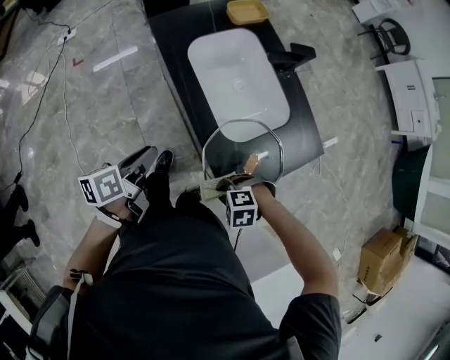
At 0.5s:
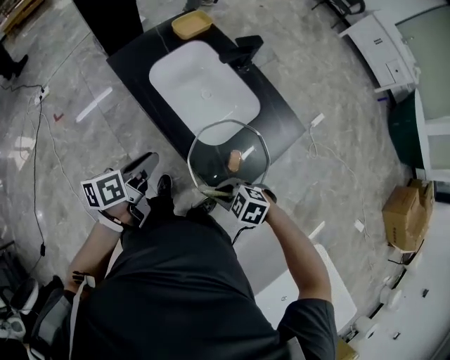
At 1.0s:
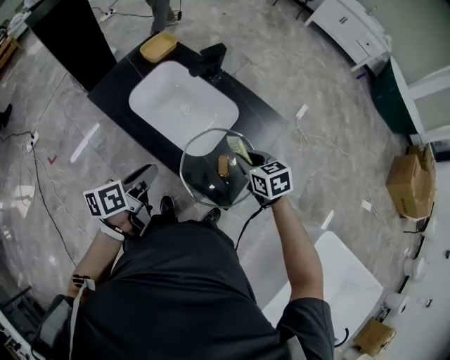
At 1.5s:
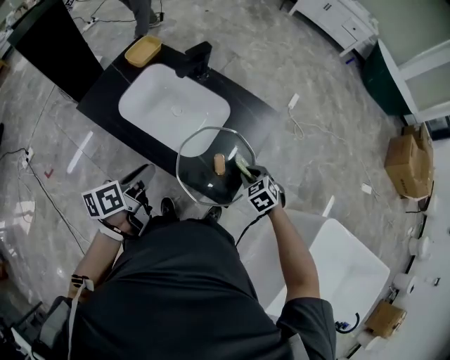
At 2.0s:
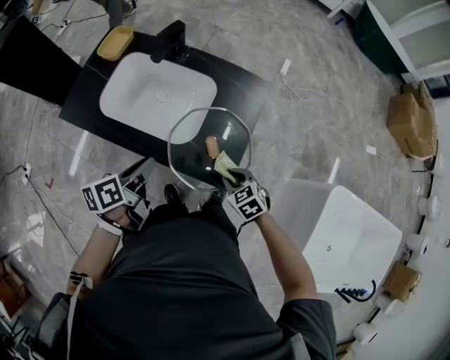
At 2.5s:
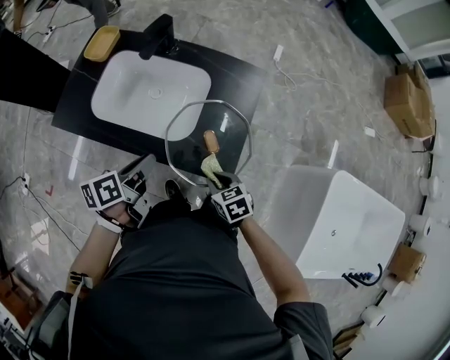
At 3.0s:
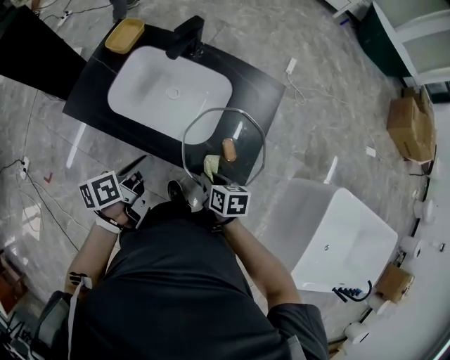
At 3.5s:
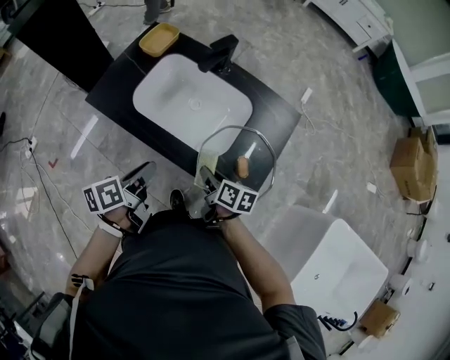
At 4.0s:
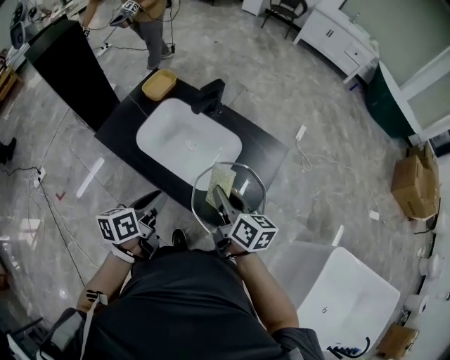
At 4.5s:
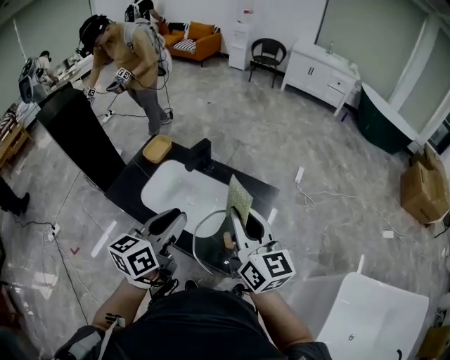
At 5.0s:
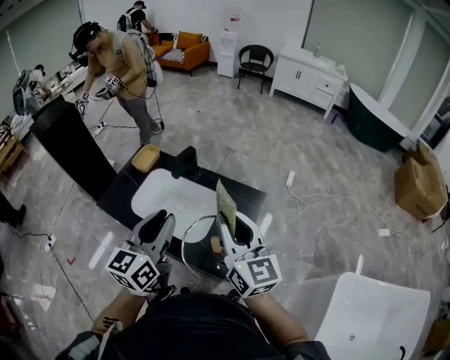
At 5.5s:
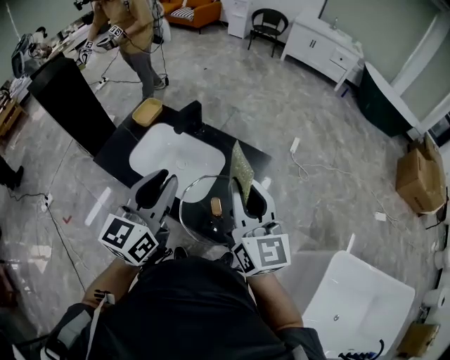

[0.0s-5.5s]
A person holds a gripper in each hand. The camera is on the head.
0.0s to 2.0s: The right gripper goes upward and returns, some 10 cm each way, and twists about 80 degrees clockwise, seen from behind; the left gripper moves about 15 cm, and turns by roughly 40 degrees.
2.0s to 3.5s: The right gripper heads to the left and forward, covering approximately 20 cm, and twists roughly 50 degrees clockwise, seen from behind. The left gripper is displaced to the left by approximately 10 cm.
3.5s to 5.5s: The two grippers go roughly 35 cm upward and to the right. The right gripper angles its fingers upward, by some 40 degrees. The left gripper rolls clockwise, seen from behind, by about 50 degrees.

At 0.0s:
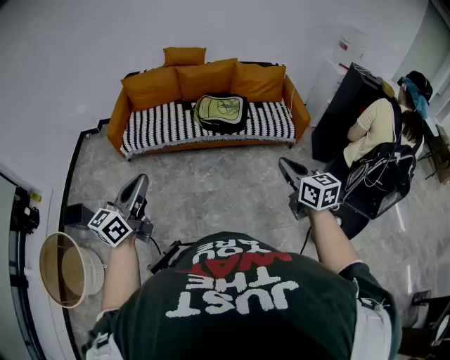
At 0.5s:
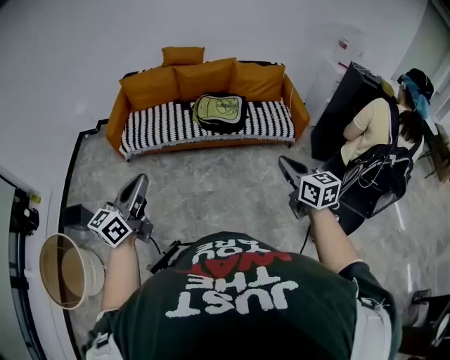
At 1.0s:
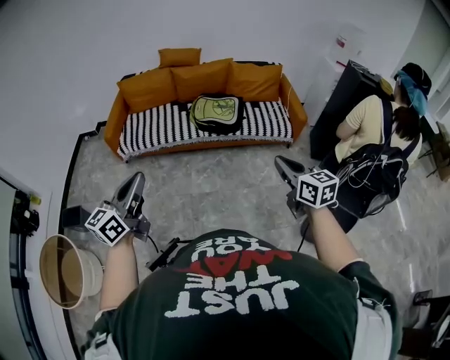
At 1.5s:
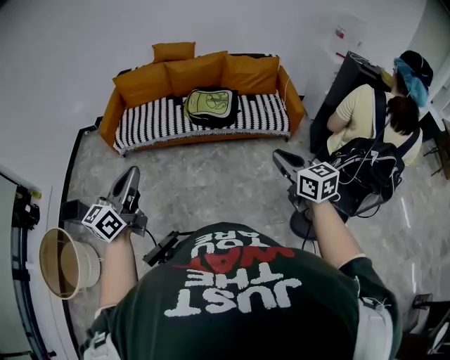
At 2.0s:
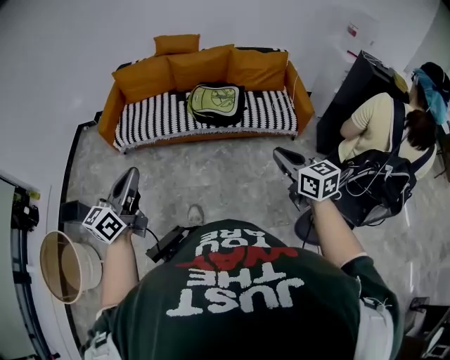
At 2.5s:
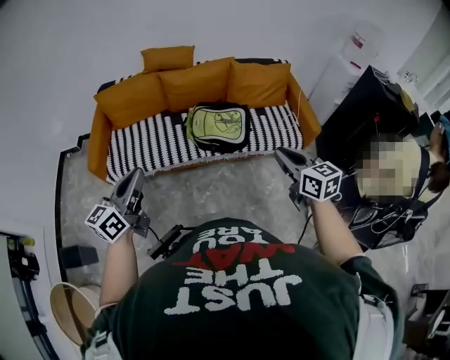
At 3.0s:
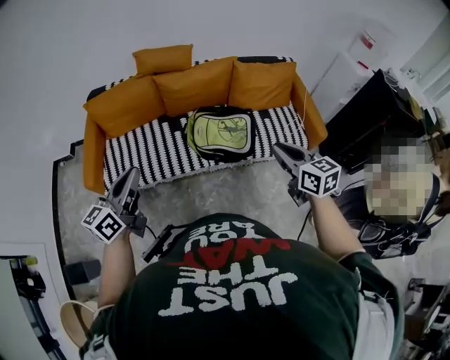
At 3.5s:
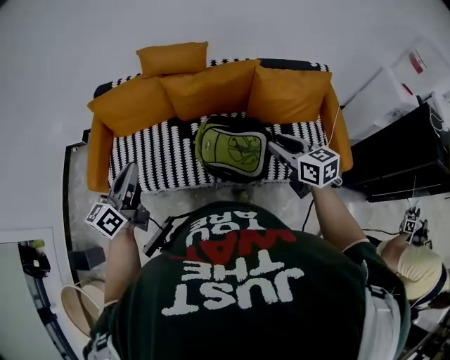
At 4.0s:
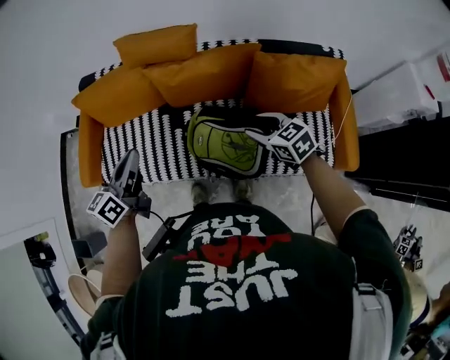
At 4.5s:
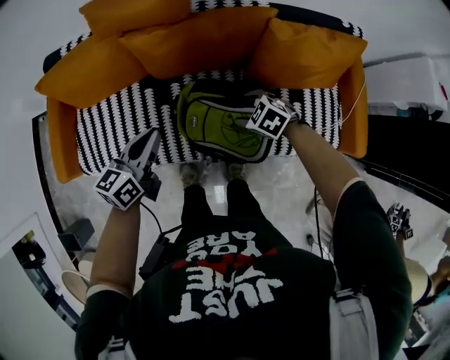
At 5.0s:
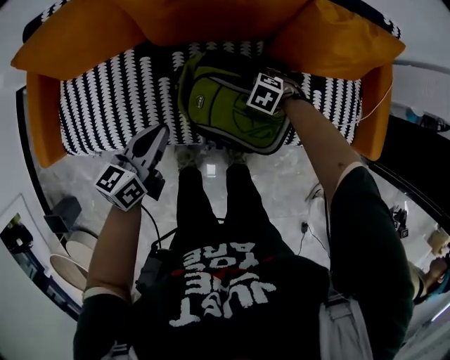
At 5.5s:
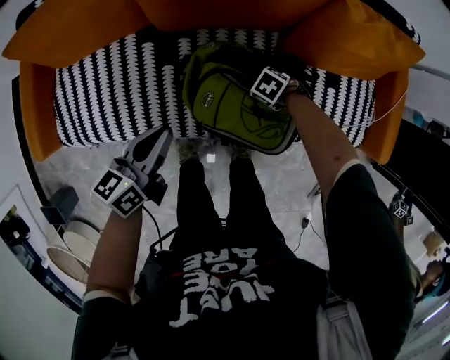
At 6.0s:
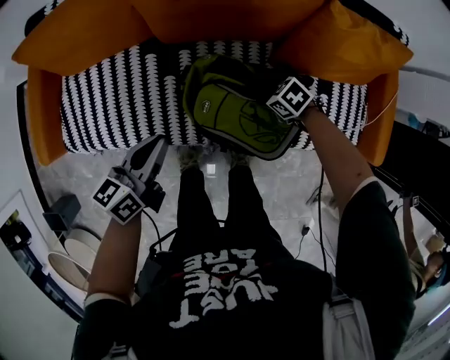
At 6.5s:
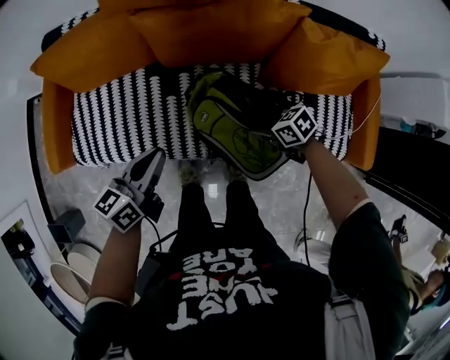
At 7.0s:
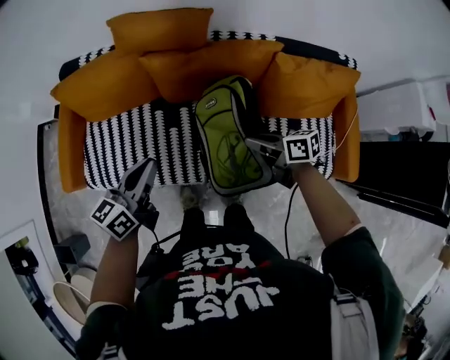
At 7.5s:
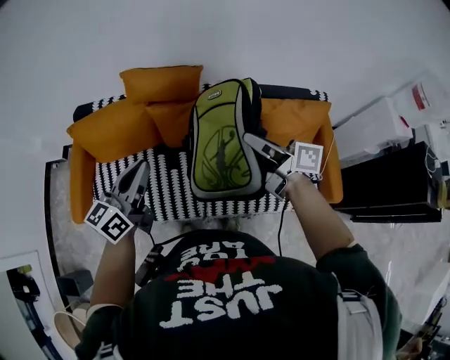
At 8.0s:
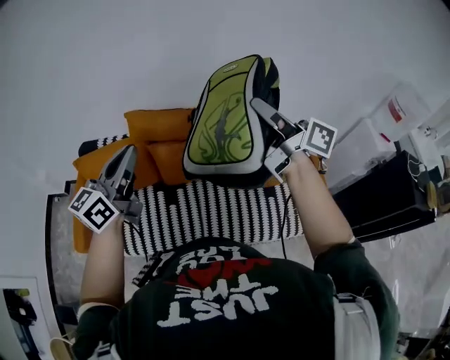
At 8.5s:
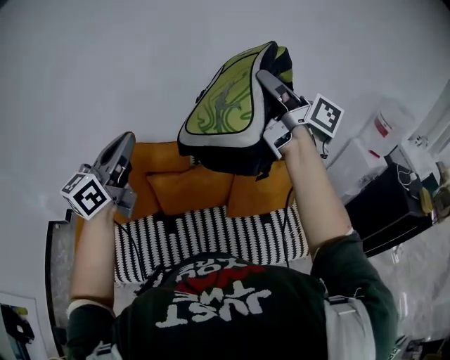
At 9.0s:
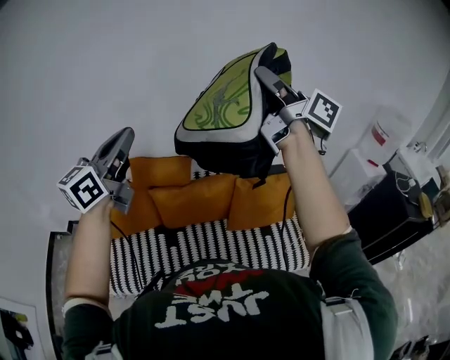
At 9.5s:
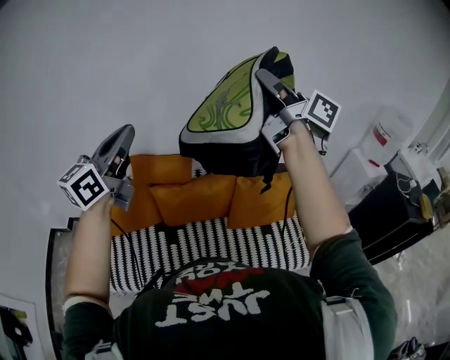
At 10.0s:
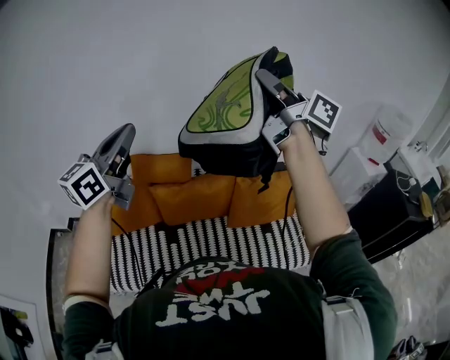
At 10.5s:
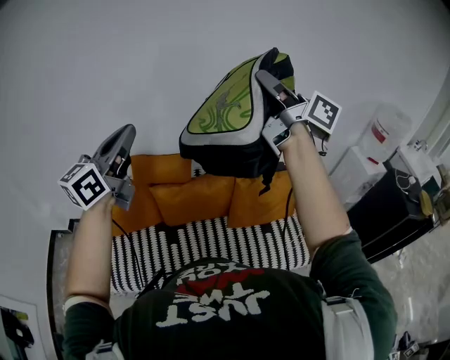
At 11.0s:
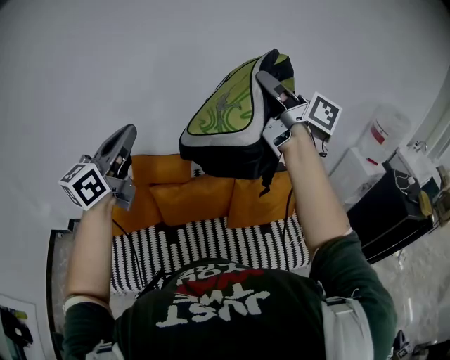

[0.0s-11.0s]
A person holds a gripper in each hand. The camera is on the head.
0.0s to 2.0s: Both grippers travel together forward and to the right, about 10 cm.
2.0s to 3.5s: The two grippers travel together, forward, about 50 cm.
3.5s to 5.5s: The left gripper heads downward, covering roughly 30 cm, and rotates roughly 30 degrees. Meanwhile the right gripper shifts about 50 cm downward, points its fingers approximately 50 degrees further downward, and opens, then closes again.
5.5s to 7.5s: The right gripper shifts approximately 60 cm upward, angles its fingers upward, by about 70 degrees, and closes its fingers; the left gripper heads upward, covering approximately 30 cm, and swivels approximately 30 degrees.
7.5s to 9.0s: The right gripper goes roughly 25 cm upward, and turns by some 30 degrees; the left gripper heads upward, covering about 10 cm, and swivels about 20 degrees.
9.0s to 11.0s: The grippers stay close to where they were, moving slightly.

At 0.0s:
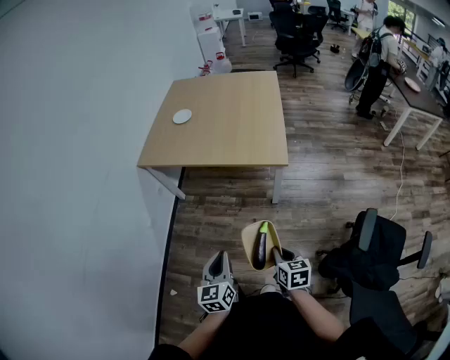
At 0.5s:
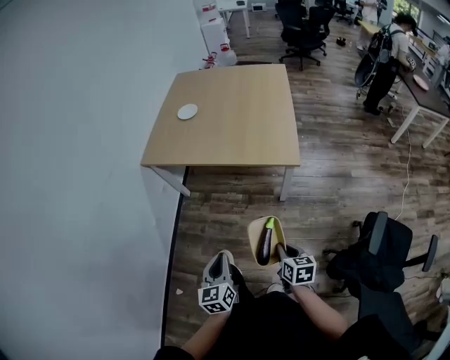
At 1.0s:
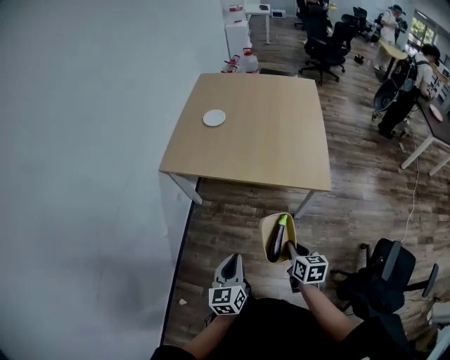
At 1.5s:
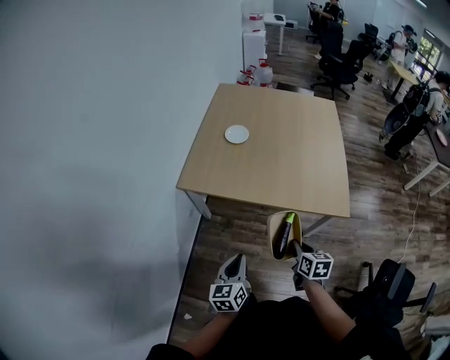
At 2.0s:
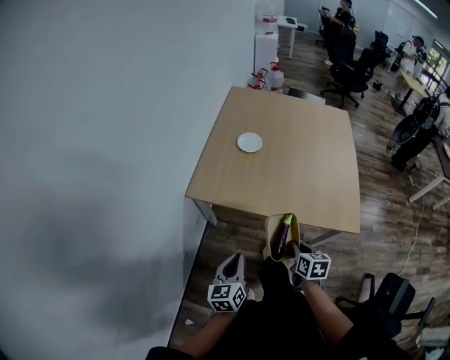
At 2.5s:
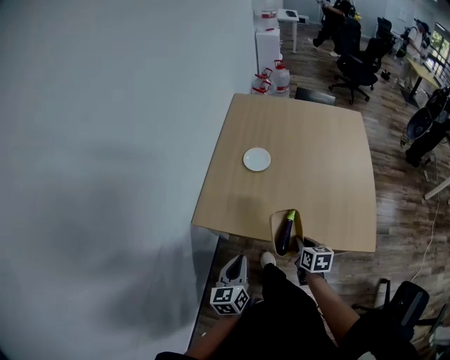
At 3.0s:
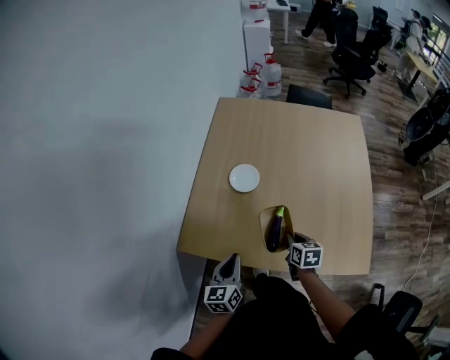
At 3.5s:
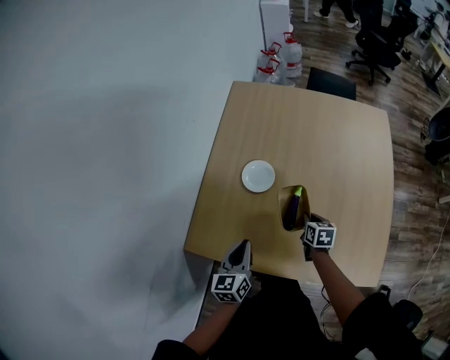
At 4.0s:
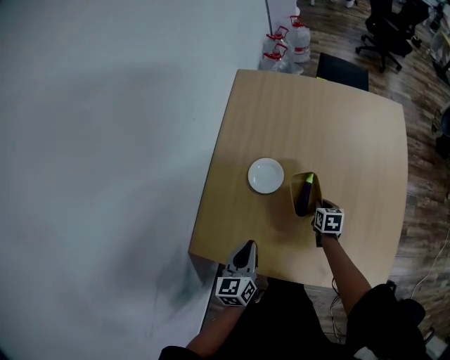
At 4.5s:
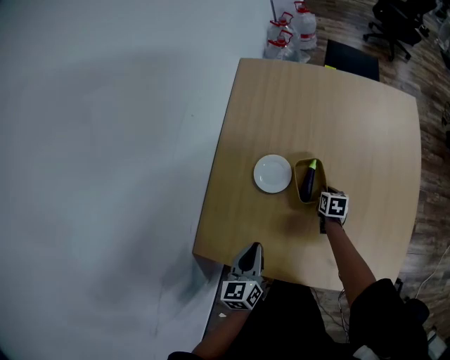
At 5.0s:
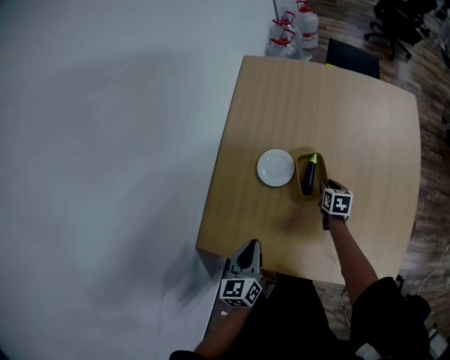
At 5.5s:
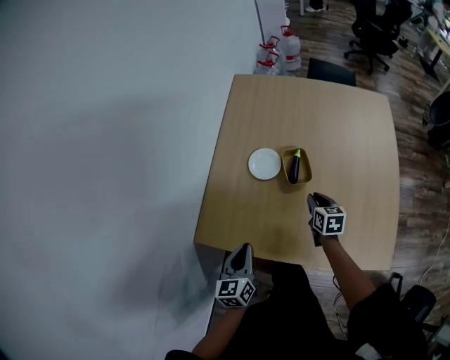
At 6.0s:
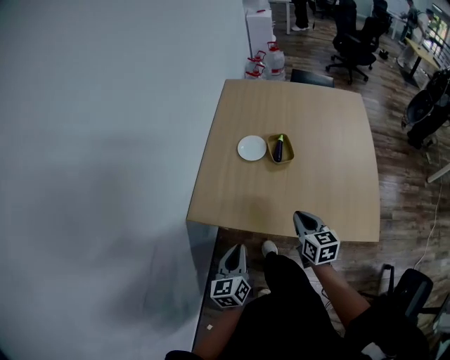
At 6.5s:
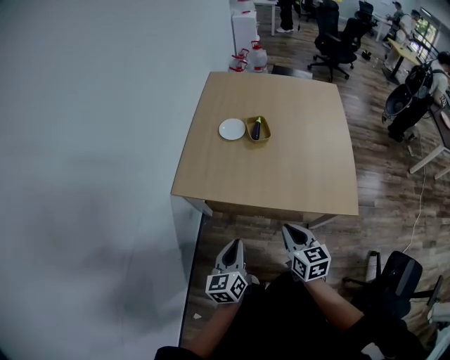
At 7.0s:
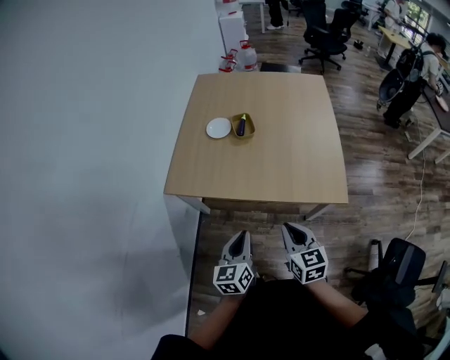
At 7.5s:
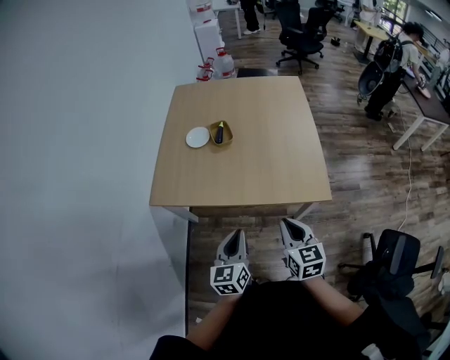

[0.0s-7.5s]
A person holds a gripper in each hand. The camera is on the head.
0.0s to 2.0s: The pair of grippers is taken forward and to the left, about 50 cm.
2.0s to 4.0s: The pair of grippers is taken forward, approximately 50 cm.
4.0s to 5.5s: The right gripper travels upward and backward by approximately 15 cm, while the left gripper is displaced backward by roughly 10 cm.
5.5s to 7.5s: The right gripper is displaced backward and upward by approximately 50 cm, and swivels some 20 degrees; the left gripper shifts some 35 cm backward and to the right.

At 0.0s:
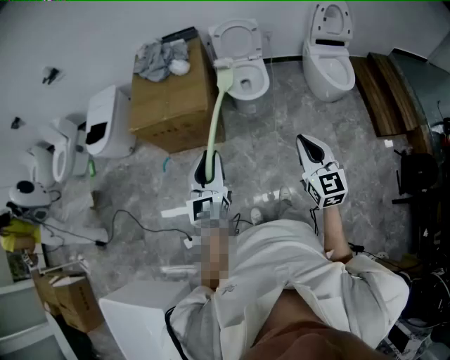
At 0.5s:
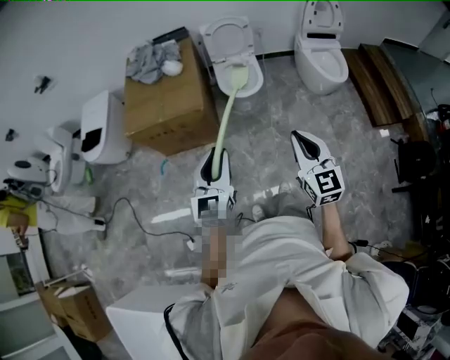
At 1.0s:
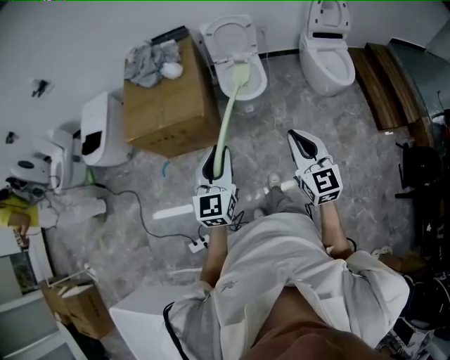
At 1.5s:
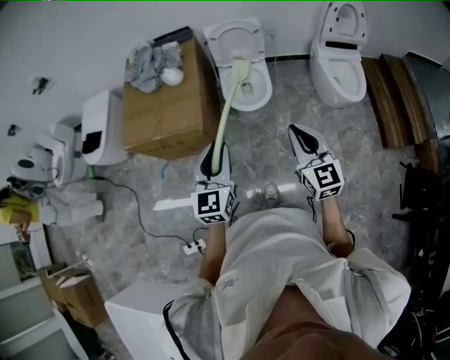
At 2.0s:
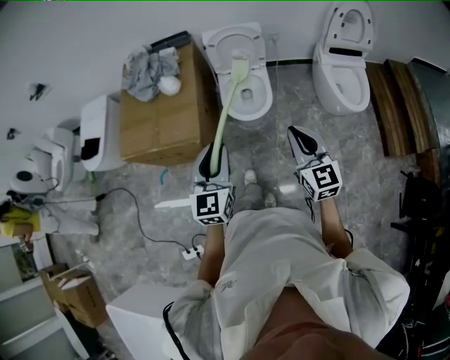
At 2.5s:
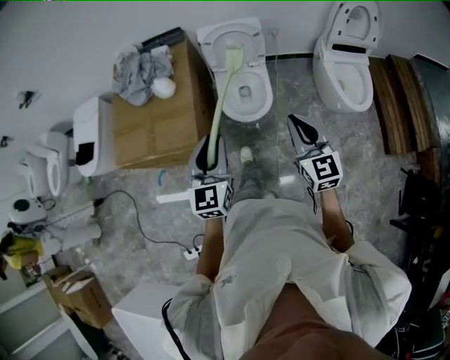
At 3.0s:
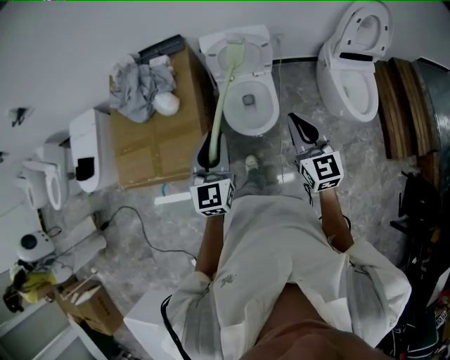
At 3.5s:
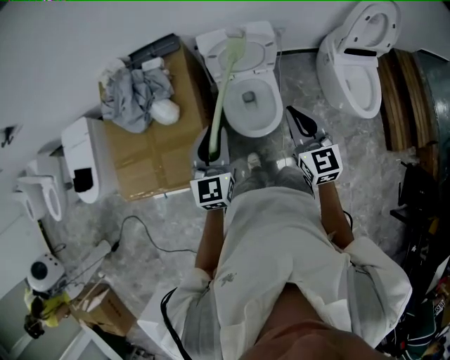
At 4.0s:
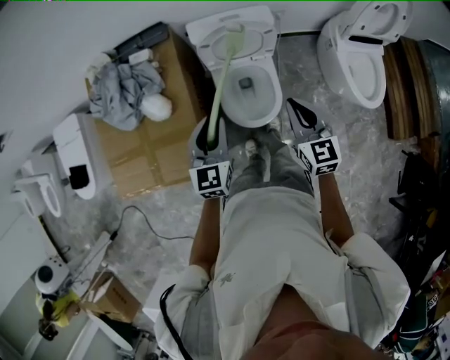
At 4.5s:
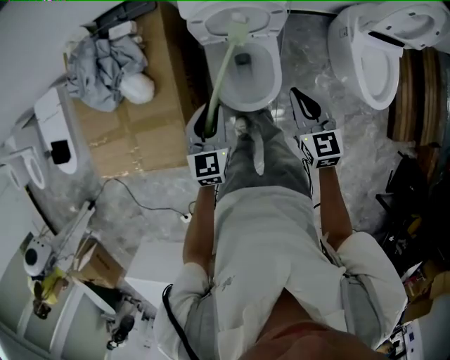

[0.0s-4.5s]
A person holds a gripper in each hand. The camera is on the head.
0.0s to 2.0s: The right gripper goes approximately 30 cm forward; the left gripper moves forward and to the right, roughly 30 cm.
2.0s to 4.5s: The two grippers travel together, forward, roughly 40 cm. The grippers both shift downward by roughly 20 cm.
